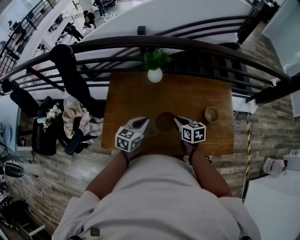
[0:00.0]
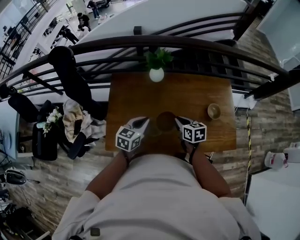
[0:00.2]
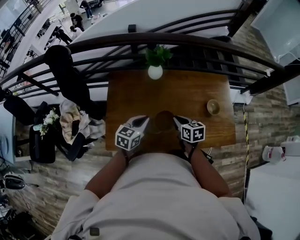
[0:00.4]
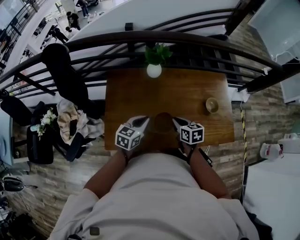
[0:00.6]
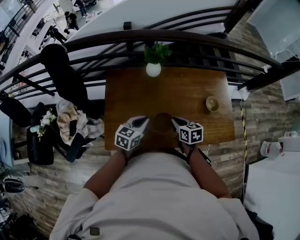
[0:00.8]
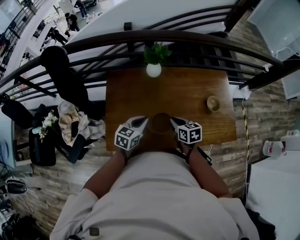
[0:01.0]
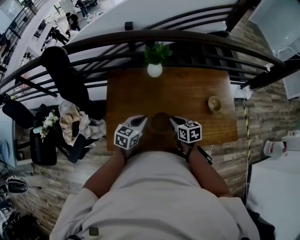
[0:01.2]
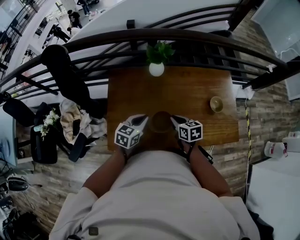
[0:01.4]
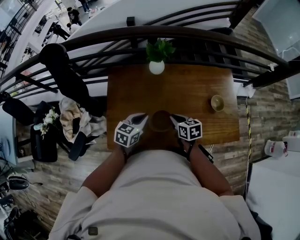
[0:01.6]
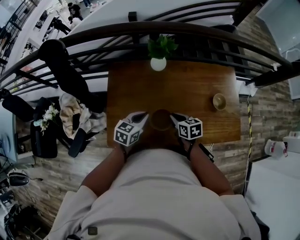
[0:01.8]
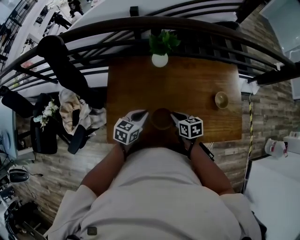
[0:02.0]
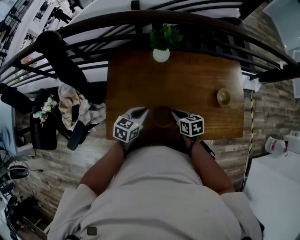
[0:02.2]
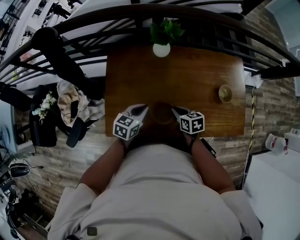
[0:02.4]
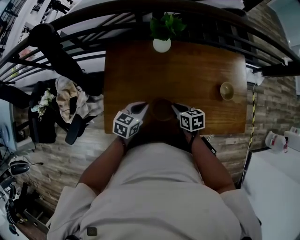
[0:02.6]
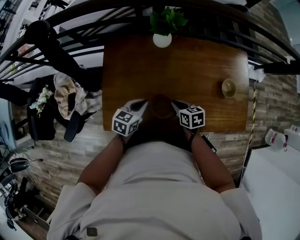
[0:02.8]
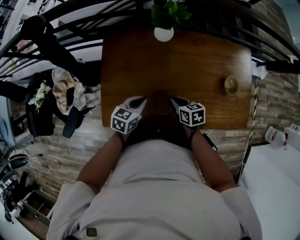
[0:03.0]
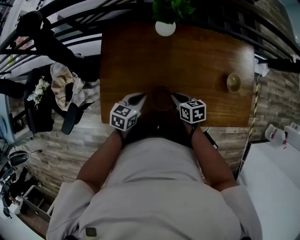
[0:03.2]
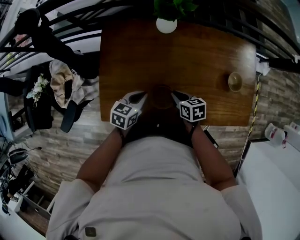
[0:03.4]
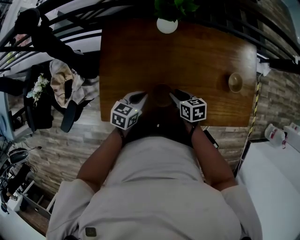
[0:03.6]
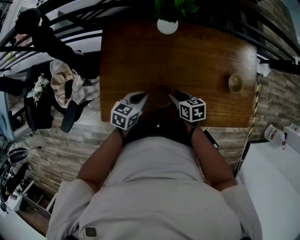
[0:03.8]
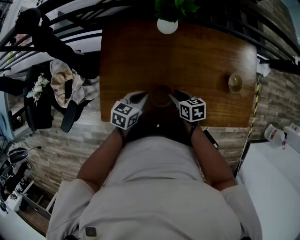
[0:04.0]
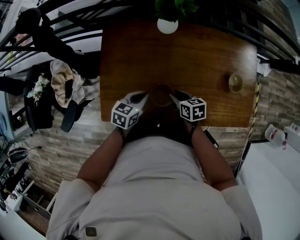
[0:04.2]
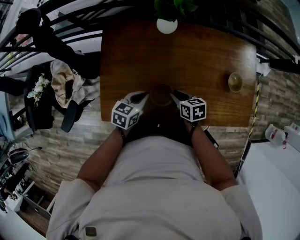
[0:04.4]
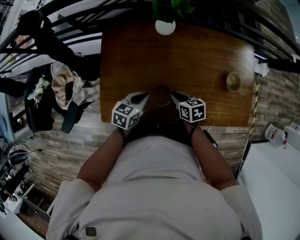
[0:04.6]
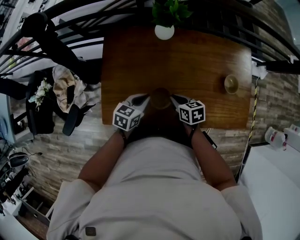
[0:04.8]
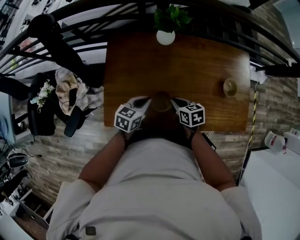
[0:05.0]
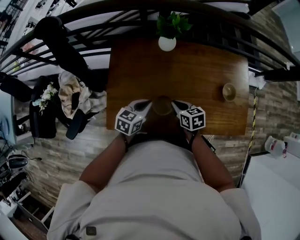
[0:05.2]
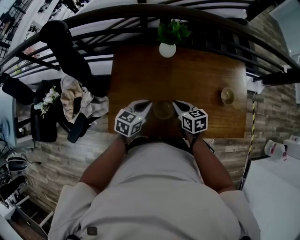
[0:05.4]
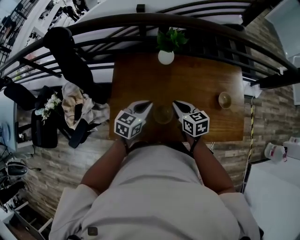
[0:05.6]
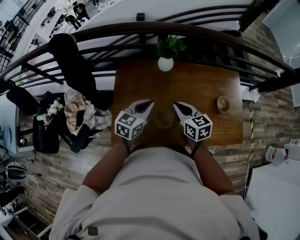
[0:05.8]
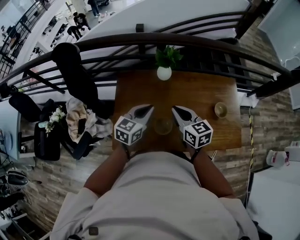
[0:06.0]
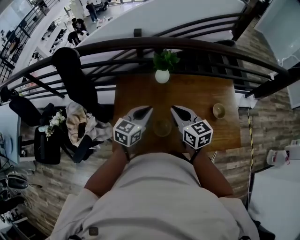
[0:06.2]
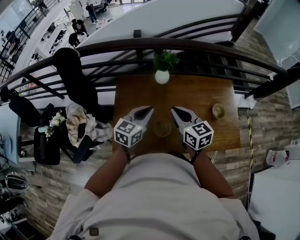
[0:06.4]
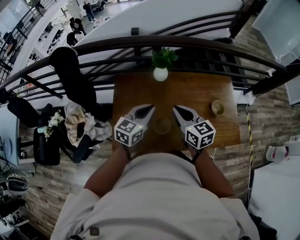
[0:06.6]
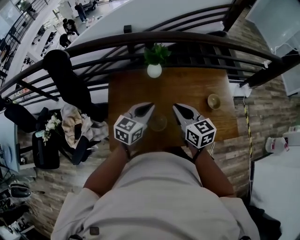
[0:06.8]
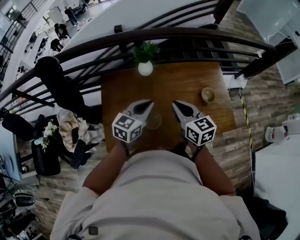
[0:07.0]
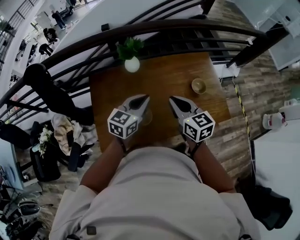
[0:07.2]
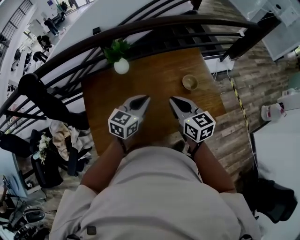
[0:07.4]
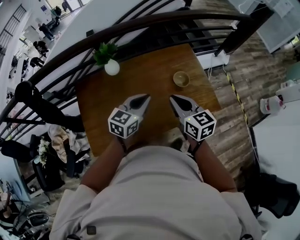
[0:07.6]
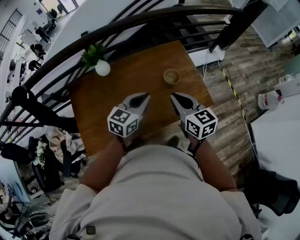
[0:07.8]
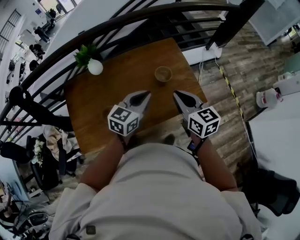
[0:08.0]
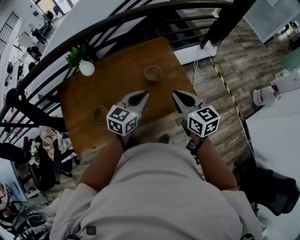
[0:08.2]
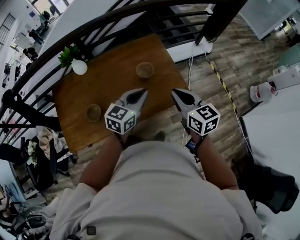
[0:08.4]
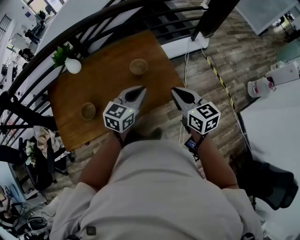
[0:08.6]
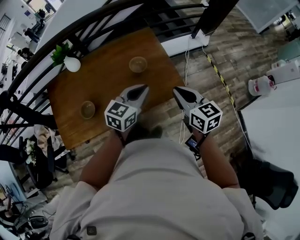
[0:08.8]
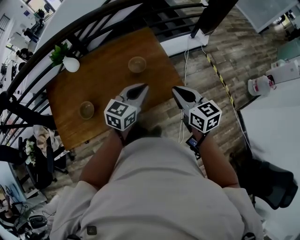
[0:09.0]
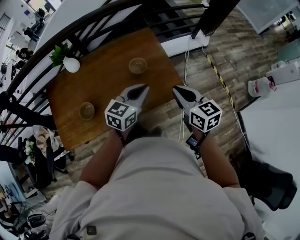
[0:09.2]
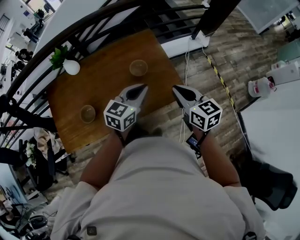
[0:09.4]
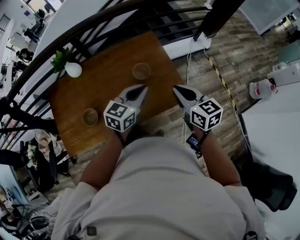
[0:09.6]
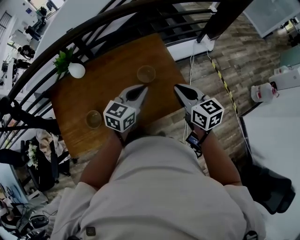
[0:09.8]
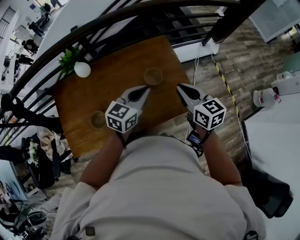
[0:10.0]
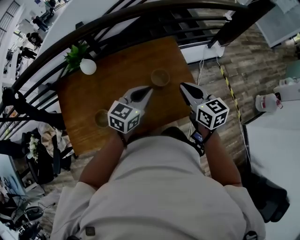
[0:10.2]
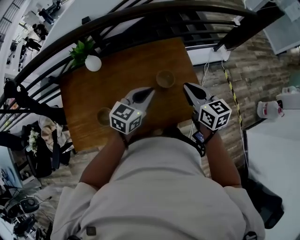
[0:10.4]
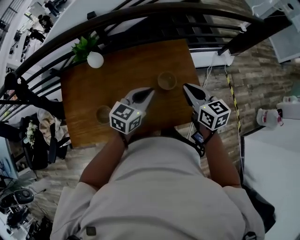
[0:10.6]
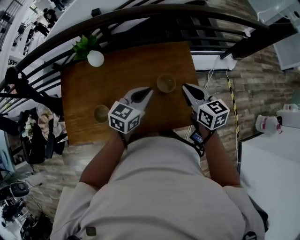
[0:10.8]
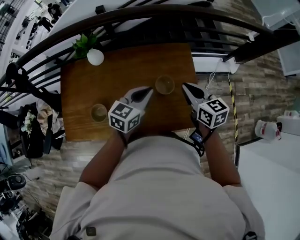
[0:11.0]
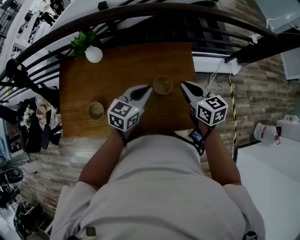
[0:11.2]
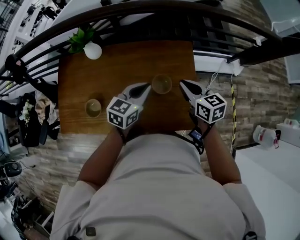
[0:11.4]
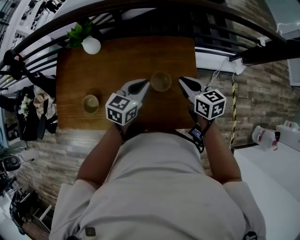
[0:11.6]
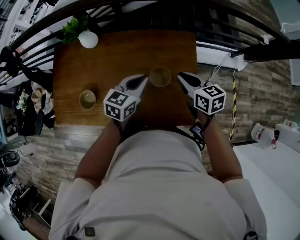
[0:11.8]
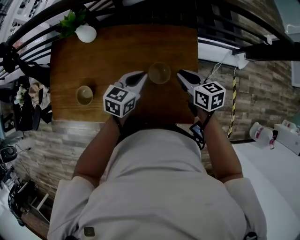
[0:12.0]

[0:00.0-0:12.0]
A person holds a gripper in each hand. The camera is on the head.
0:00.0 to 0:01.6: Both grippers move to the left, some 10 cm.
0:01.6 to 0:03.0: The grippers both shift downward by some 10 cm.
0:03.0 to 0:04.4: The grippers move only a little.
0:04.4 to 0:06.0: Both grippers move upward, roughly 25 cm. The right gripper turns by about 40 degrees. The left gripper changes its angle by approximately 20 degrees.
0:06.0 to 0:07.6: The two grippers go roughly 25 cm to the right. The left gripper turns by some 20 degrees.
0:07.6 to 0:09.0: The two grippers go about 30 cm to the right.
0:09.0 to 0:10.4: The right gripper heads forward and to the left, covering approximately 20 cm, while the left gripper travels to the left and forward by about 15 cm.
0:10.4 to 0:12.0: Both grippers travel together downward and forward, some 20 cm. The right gripper changes its angle by roughly 30 degrees, while the left gripper swivels about 20 degrees.

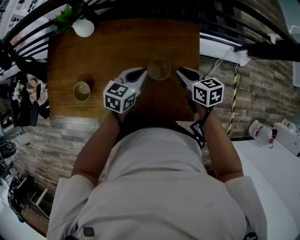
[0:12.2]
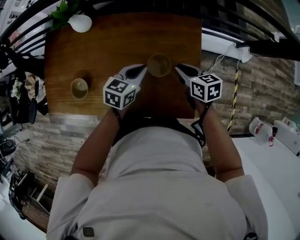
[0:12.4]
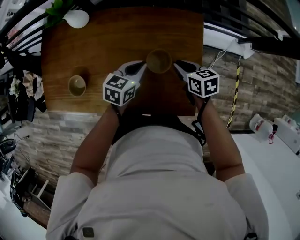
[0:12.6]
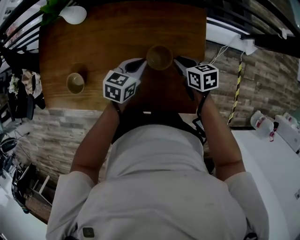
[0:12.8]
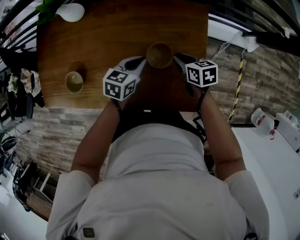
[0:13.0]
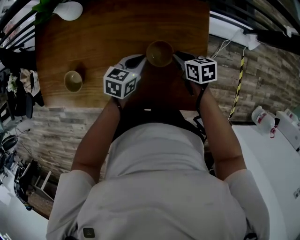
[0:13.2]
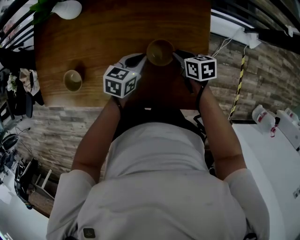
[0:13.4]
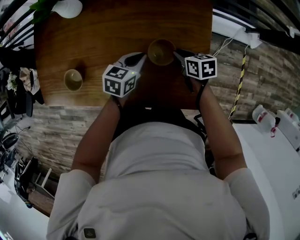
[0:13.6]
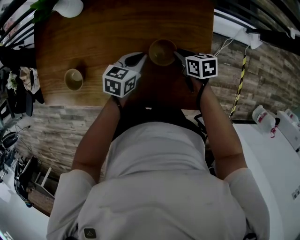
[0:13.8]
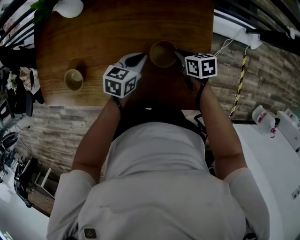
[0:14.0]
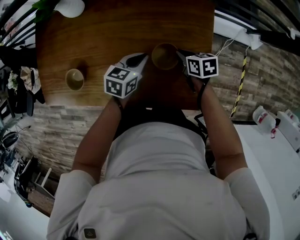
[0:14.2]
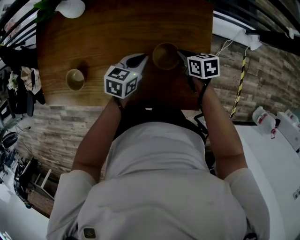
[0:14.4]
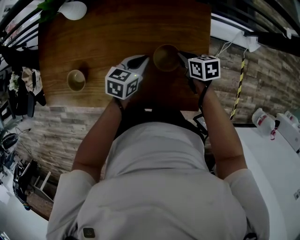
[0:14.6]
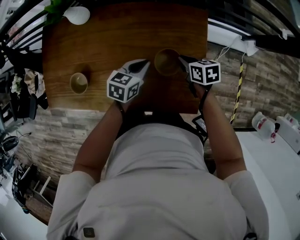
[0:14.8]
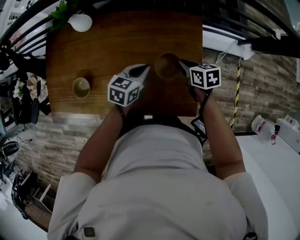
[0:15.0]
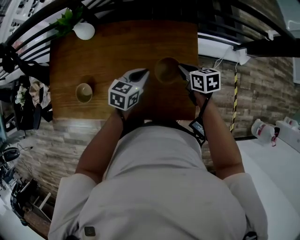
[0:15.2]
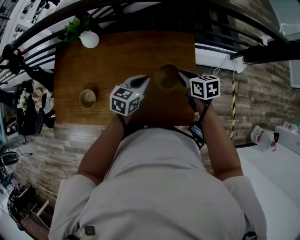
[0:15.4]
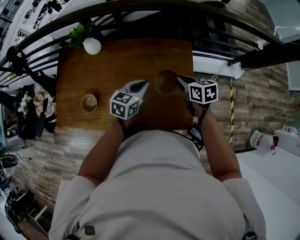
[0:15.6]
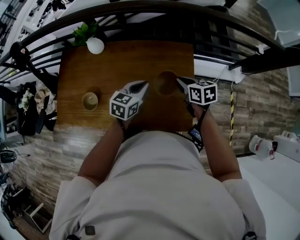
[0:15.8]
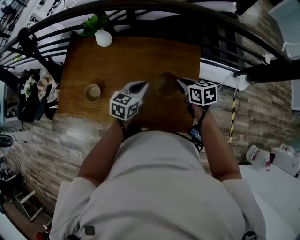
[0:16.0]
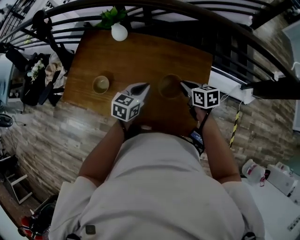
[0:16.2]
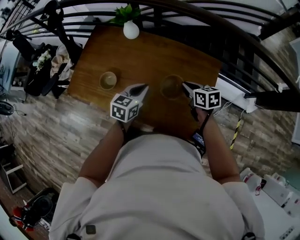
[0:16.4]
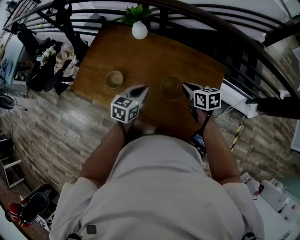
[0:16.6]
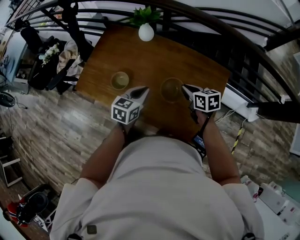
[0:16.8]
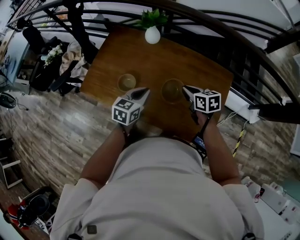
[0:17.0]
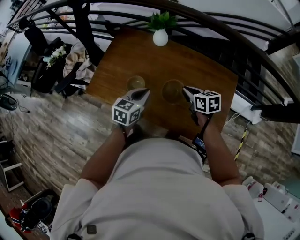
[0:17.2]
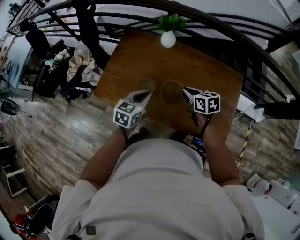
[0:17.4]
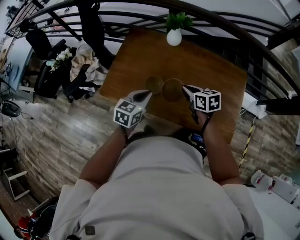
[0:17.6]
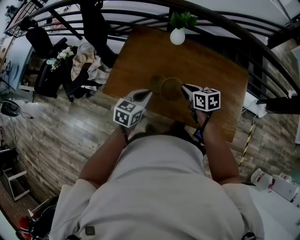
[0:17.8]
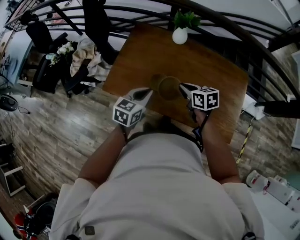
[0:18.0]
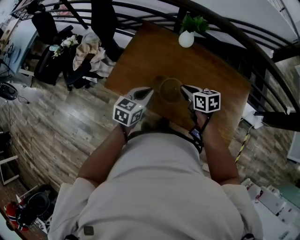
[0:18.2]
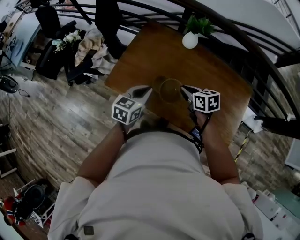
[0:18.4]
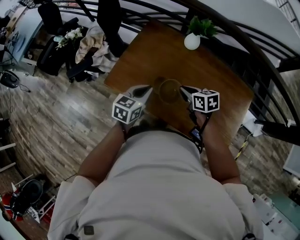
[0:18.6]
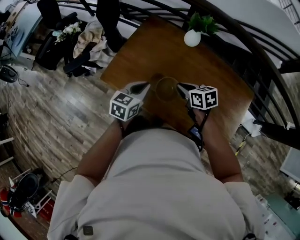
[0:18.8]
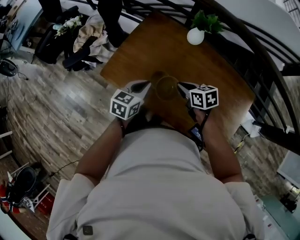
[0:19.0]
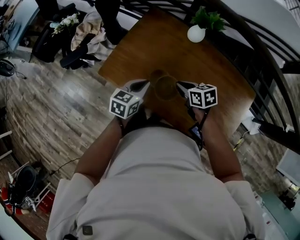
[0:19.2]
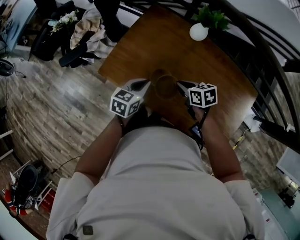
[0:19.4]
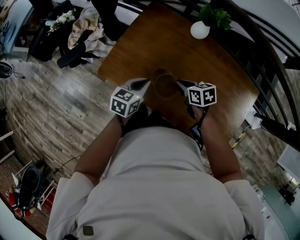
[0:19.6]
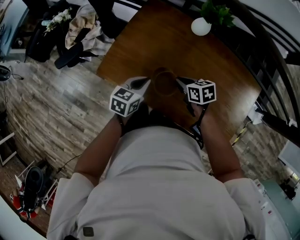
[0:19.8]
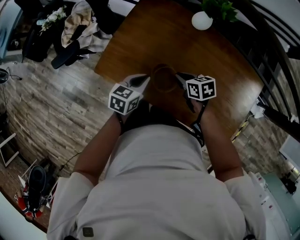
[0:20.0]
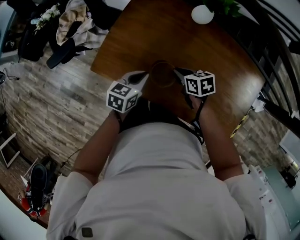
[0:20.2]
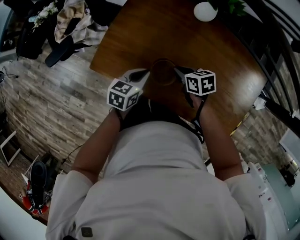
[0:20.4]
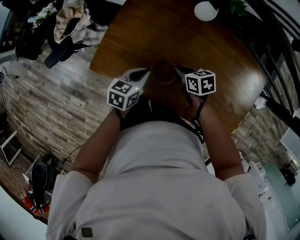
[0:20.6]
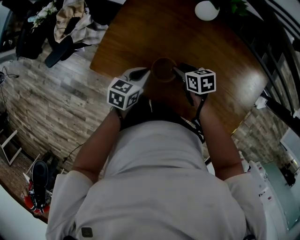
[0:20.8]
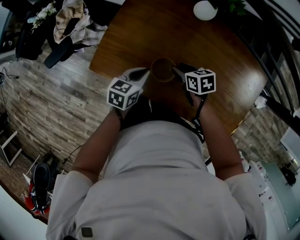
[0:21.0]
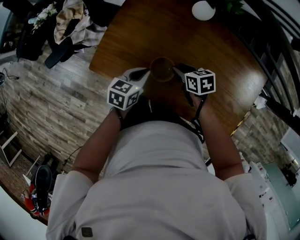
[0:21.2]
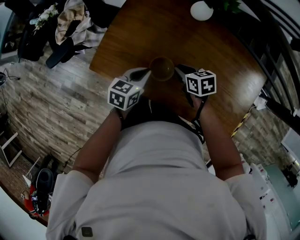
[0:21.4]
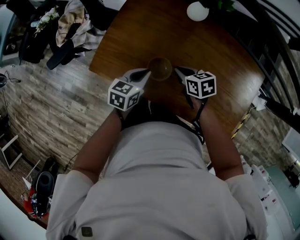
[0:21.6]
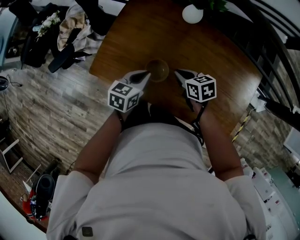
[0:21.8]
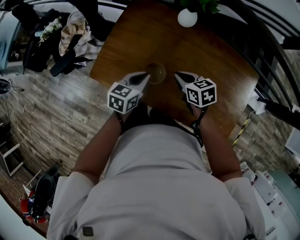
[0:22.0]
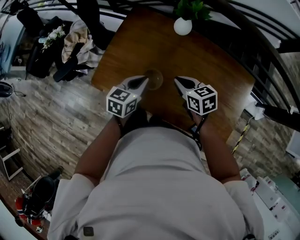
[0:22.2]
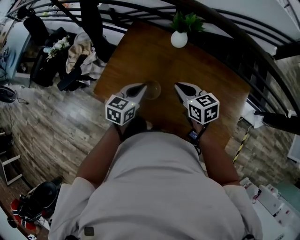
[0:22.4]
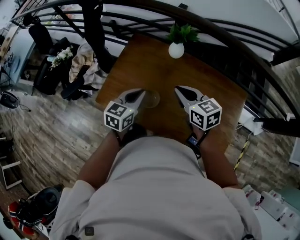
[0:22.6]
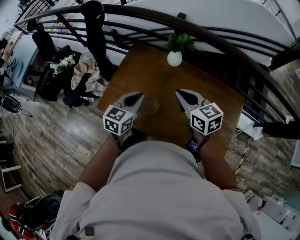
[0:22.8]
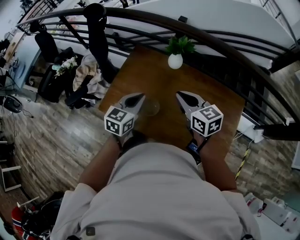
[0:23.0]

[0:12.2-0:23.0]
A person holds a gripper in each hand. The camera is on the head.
0:12.2 to 0:13.8: Both grippers move downward, about 15 cm.
0:13.8 to 0:15.2: The grippers both shift upward by some 15 cm.
0:15.2 to 0:16.8: Both grippers move to the left, approximately 20 cm. The right gripper turns by approximately 20 degrees, while the left gripper turns by approximately 20 degrees.
0:16.8 to 0:18.4: The grippers both shift to the left by approximately 30 cm.
0:18.4 to 0:20.0: The grippers both shift downward and forward by some 15 cm.
0:20.0 to 0:21.4: The right gripper opens, then closes again.
0:21.4 to 0:23.0: Both grippers travel together upward, approximately 25 cm. The left gripper swivels some 20 degrees. The right gripper turns by roughly 40 degrees.

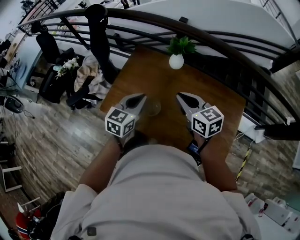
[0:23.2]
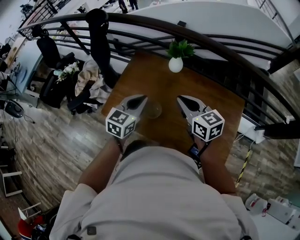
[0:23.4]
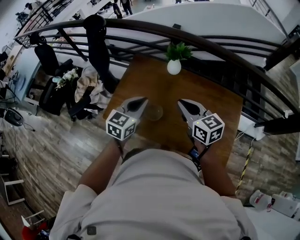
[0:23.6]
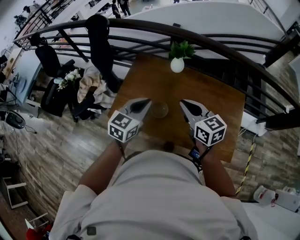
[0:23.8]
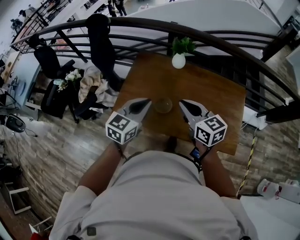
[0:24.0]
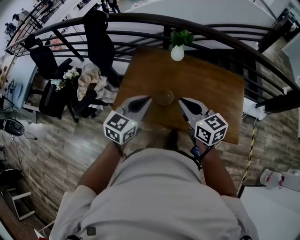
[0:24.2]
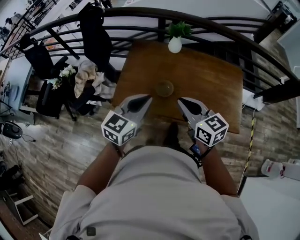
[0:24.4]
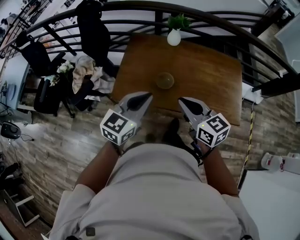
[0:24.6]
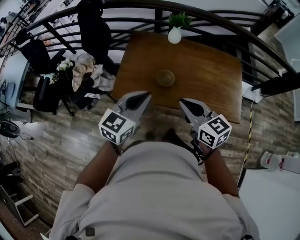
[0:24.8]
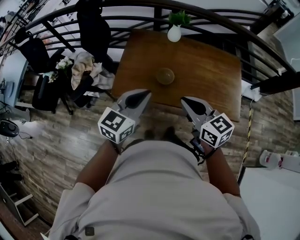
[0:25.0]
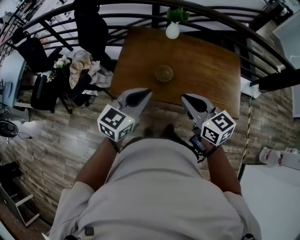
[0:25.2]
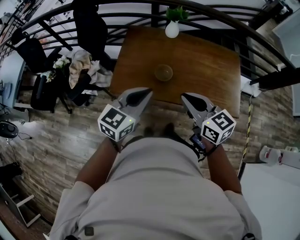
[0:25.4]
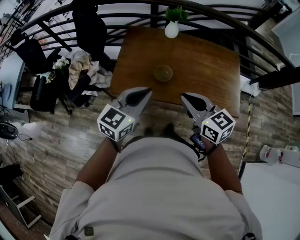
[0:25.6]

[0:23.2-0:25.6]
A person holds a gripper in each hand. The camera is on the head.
0:23.2 to 0:24.4: The left gripper travels backward, to the left and upward by approximately 20 cm, and changes its angle by approximately 20 degrees. The right gripper heads backward and to the left, covering approximately 20 cm.
0:24.4 to 0:25.6: Both grippers travel together backward, about 5 cm.
